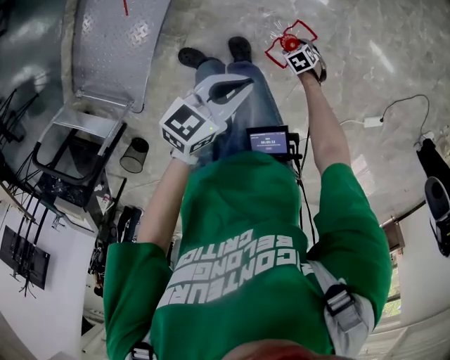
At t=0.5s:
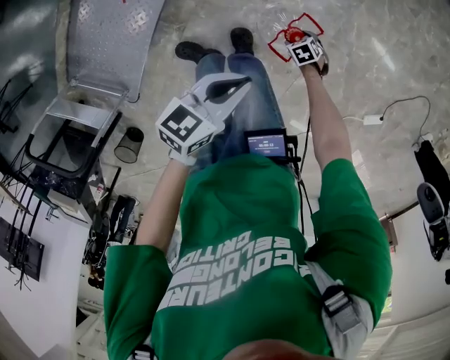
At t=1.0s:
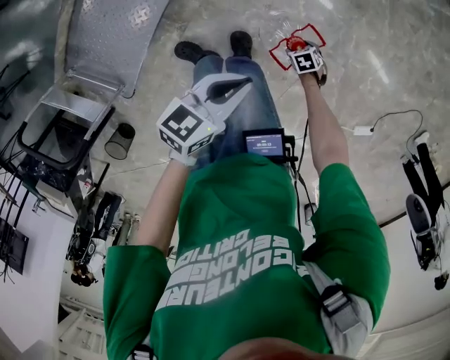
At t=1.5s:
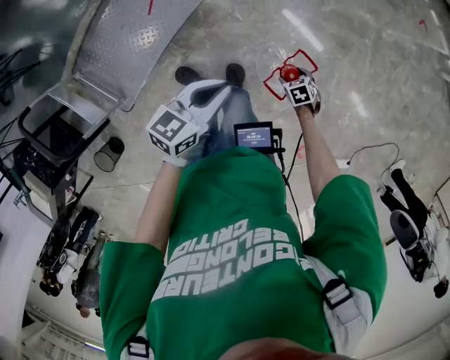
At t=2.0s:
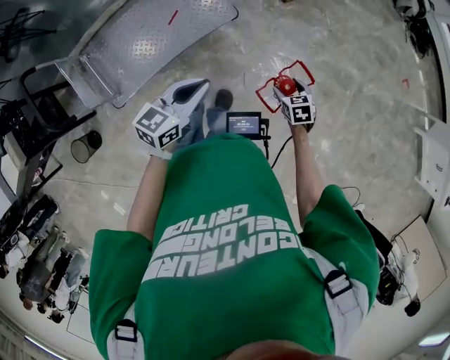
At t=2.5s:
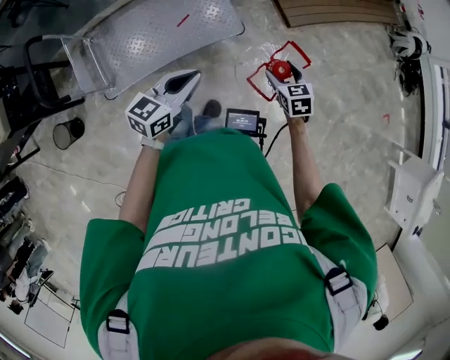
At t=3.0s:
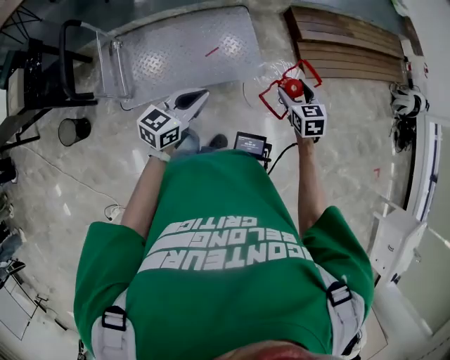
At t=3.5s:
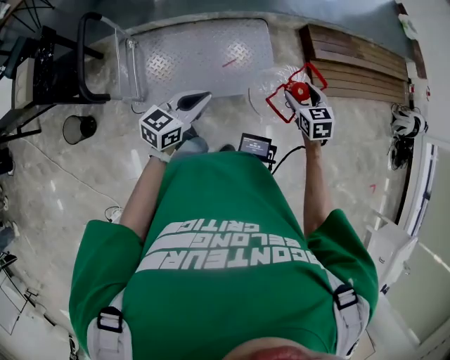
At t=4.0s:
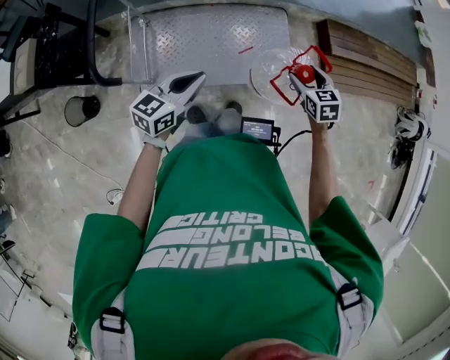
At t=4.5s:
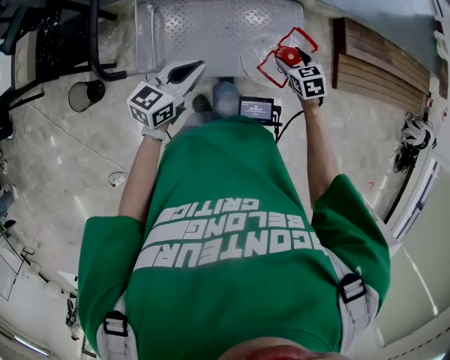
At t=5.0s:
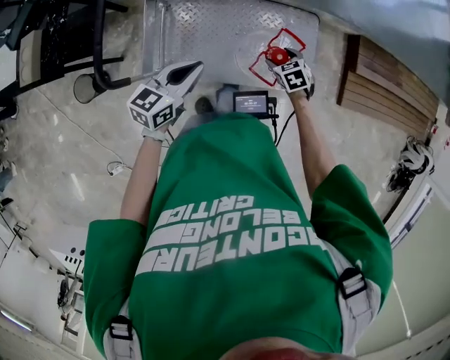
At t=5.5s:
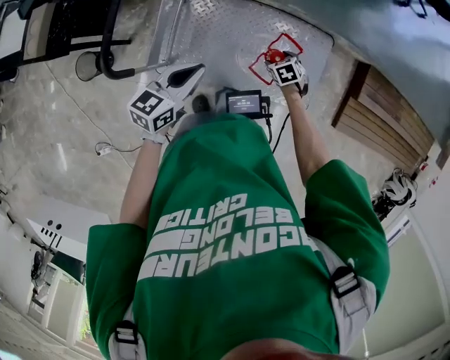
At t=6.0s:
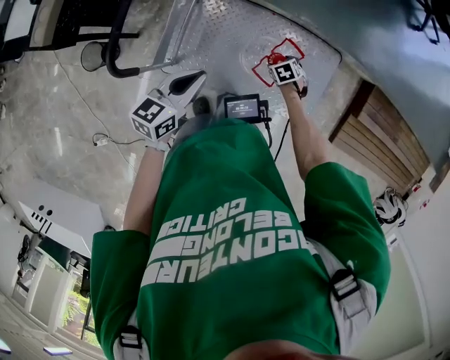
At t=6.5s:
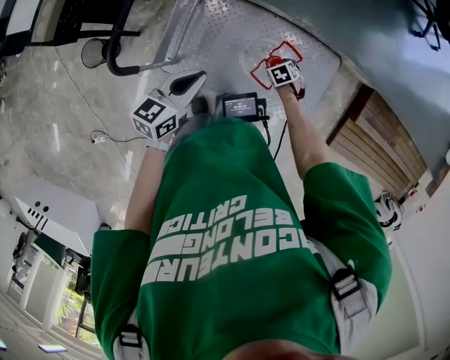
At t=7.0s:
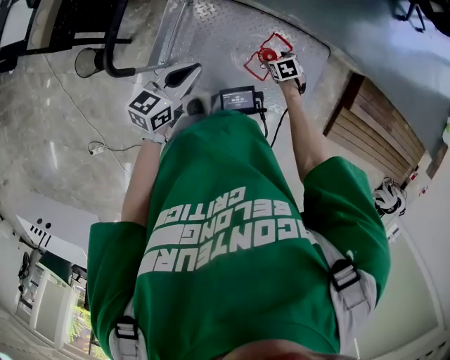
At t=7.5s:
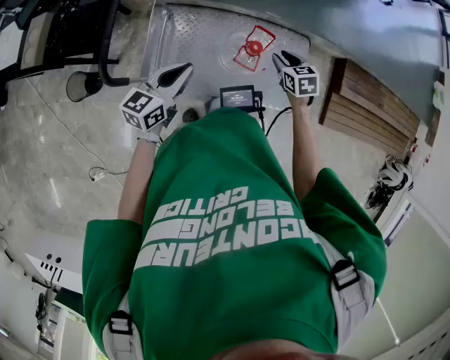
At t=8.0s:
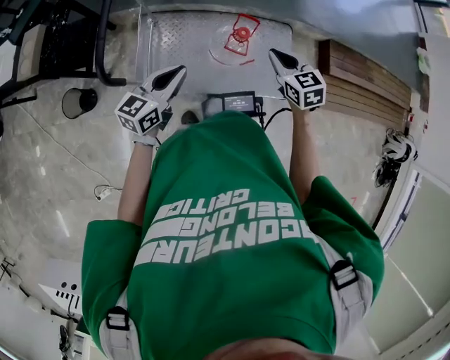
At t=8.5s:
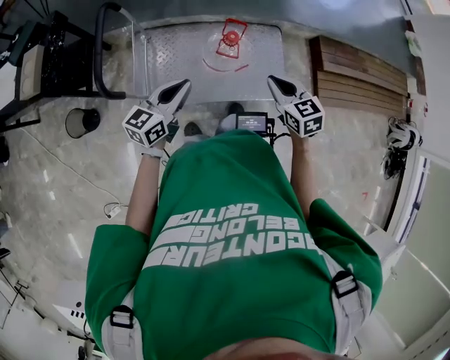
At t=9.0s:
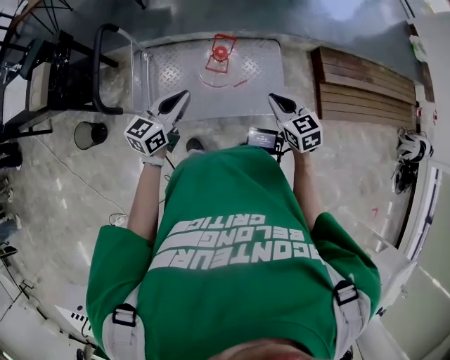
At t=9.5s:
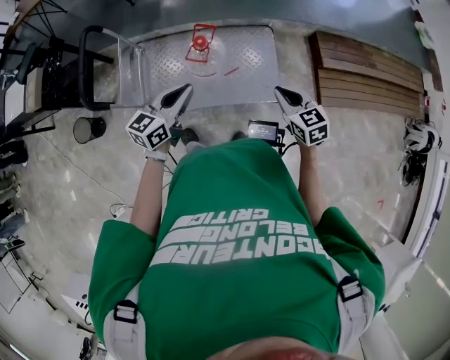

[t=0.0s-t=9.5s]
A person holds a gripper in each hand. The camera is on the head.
t=0.0s to t=2.0s: The right gripper travels upward by about 30 cm, and changes its angle by approximately 30 degrees. The left gripper moves upward, some 15 cm, and changes its angle by approximately 40 degrees.
t=2.0s to t=4.0s: The two grippers travel together, approximately 50 cm. The right gripper changes its angle by approximately 40 degrees. The left gripper turns by about 30 degrees.
t=4.0s to t=5.5s: The right gripper moves roughly 40 cm, and swivels approximately 40 degrees, while the left gripper ends up some 20 cm from where it was, and changes its angle by approximately 20 degrees.
t=5.5s to t=7.5s: The left gripper changes place by some 5 cm. The right gripper shifts roughly 20 cm upward, turns by approximately 20 degrees, and closes its fingers.
t=7.5s to t=9.5s: The right gripper shifts about 35 cm backward, to the right and upward, and closes; the left gripper goes about 25 cm to the right and backward.

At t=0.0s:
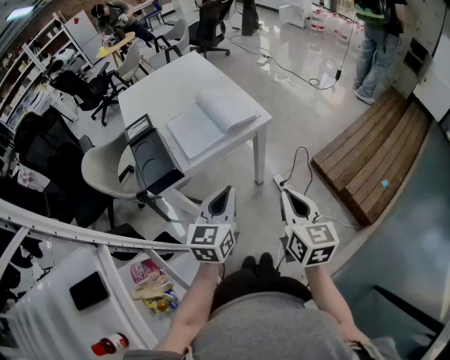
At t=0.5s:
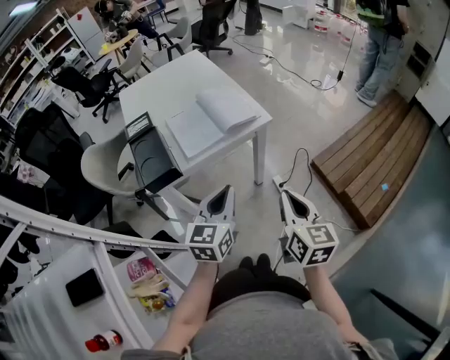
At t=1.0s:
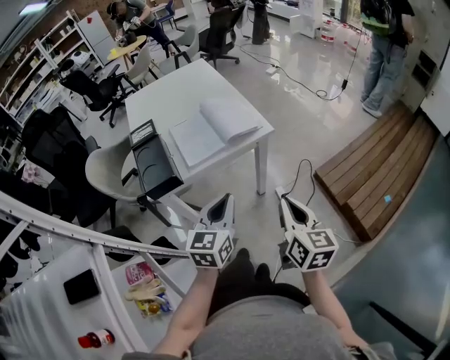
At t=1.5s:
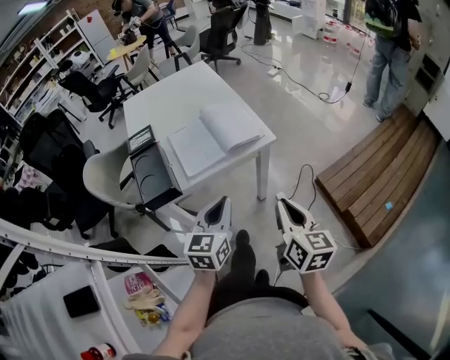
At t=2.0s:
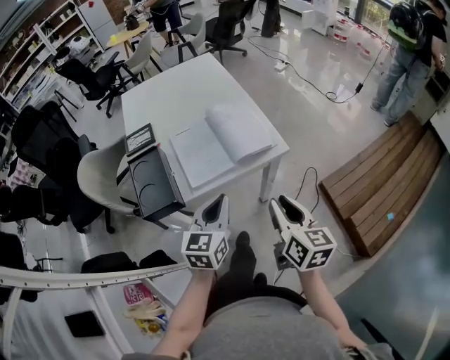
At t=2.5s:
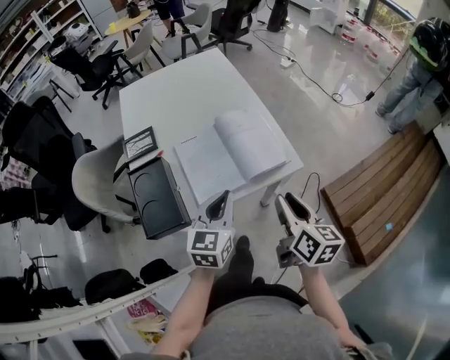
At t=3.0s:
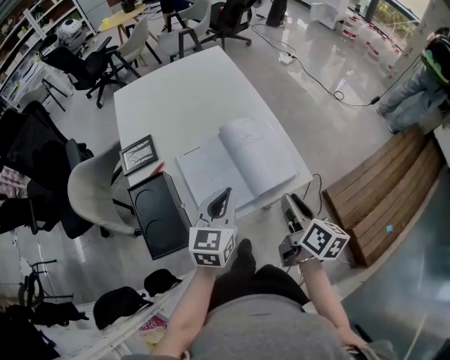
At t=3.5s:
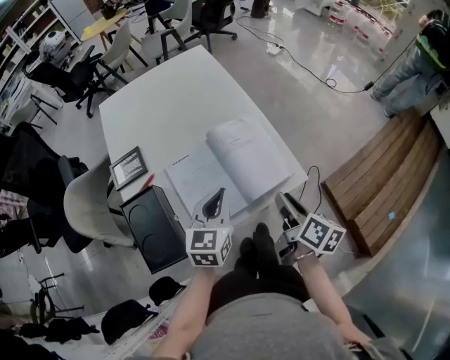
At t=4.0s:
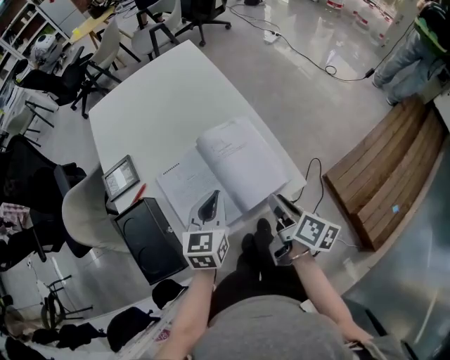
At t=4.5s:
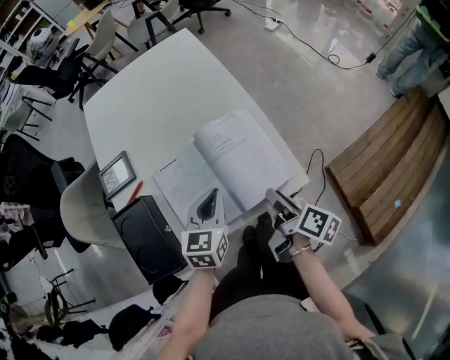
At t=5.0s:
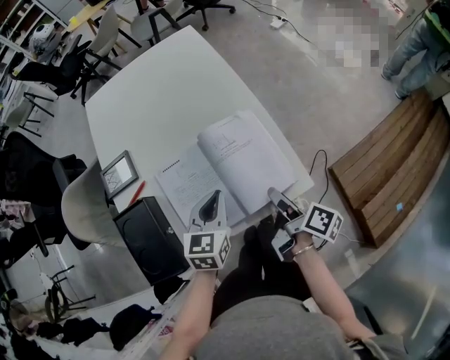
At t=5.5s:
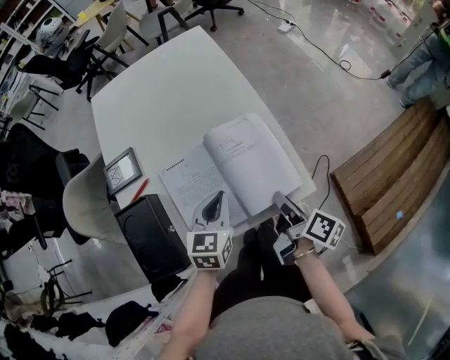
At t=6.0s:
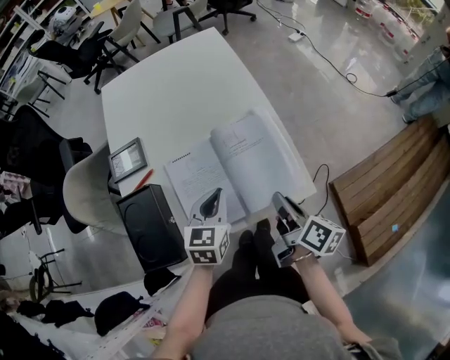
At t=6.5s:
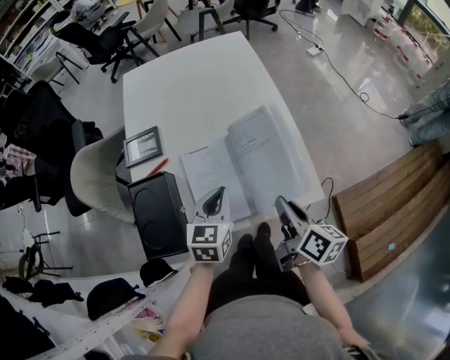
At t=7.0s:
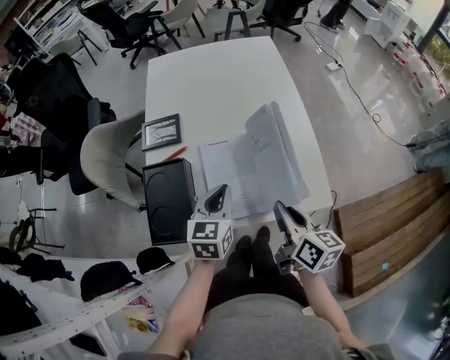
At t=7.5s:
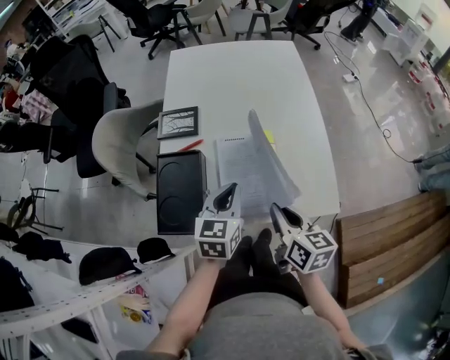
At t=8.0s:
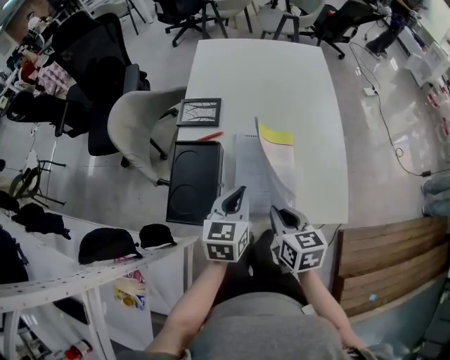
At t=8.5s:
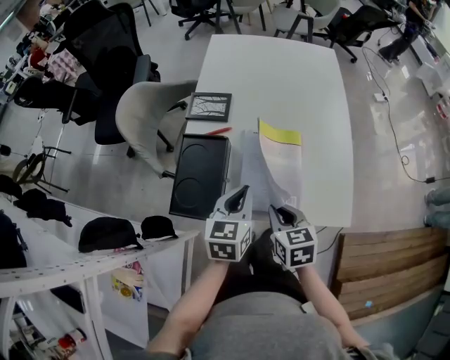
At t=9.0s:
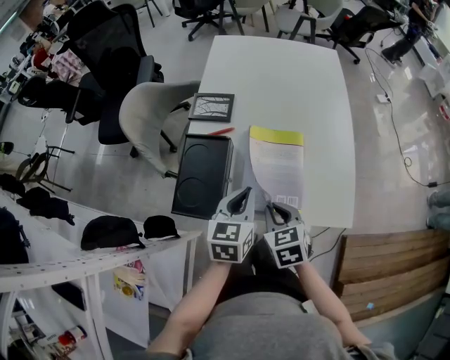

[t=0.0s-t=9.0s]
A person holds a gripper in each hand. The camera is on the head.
t=0.0s to t=2.0s: The two grippers go roughly 15 cm forward. The right gripper opens its fingers.
t=2.0s to t=4.5s: The left gripper heads forward, covering approximately 20 cm. The right gripper moves forward and downward, roughly 25 cm, and rotates around the line of its fingers by some 50 degrees, clockwise from behind.
t=4.5s to t=7.0s: The right gripper is displaced to the left and upward by about 10 cm, changes its angle by some 40 degrees, and closes its fingers; the left gripper travels to the left by about 10 cm.
t=7.0s to t=9.0s: The left gripper ends up about 5 cm from where it was; the right gripper travels to the left and downward by approximately 15 cm, and rolls counterclockwise, seen from behind, by approximately 50 degrees.

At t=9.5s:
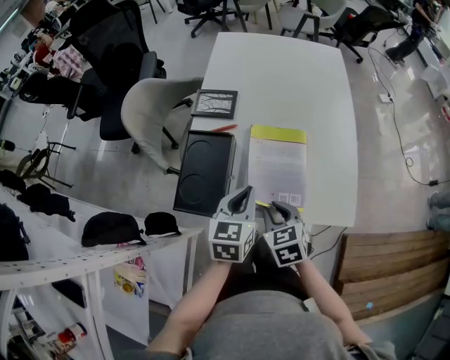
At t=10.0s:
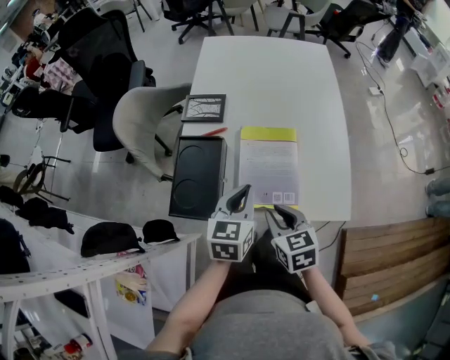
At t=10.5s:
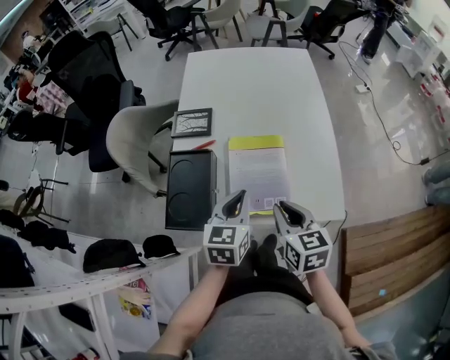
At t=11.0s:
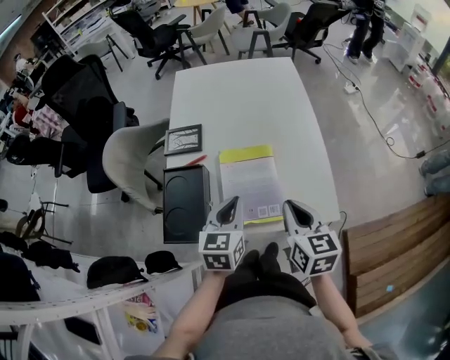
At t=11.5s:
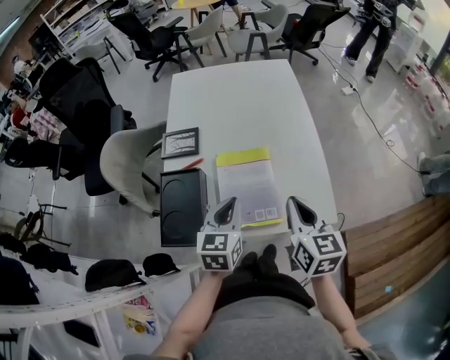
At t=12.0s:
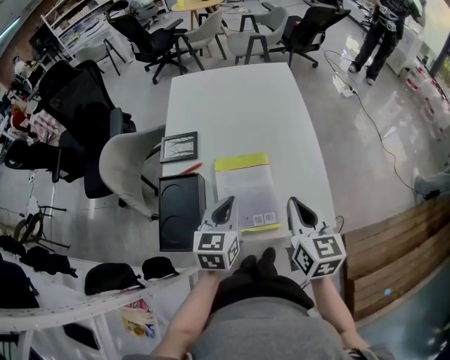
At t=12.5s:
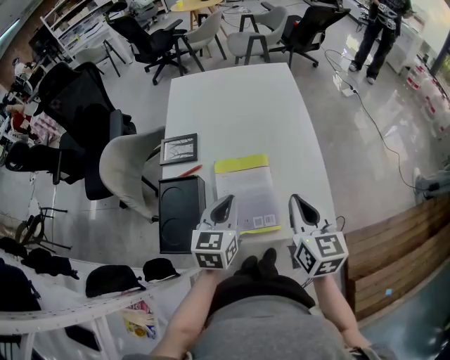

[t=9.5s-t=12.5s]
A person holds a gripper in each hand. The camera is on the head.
t=9.5s to t=11.0s: The right gripper shifts approximately 15 cm upward and to the right, and rotates roughly 40 degrees.
t=11.0s to t=12.5s: The right gripper ends up roughly 5 cm from where it was.

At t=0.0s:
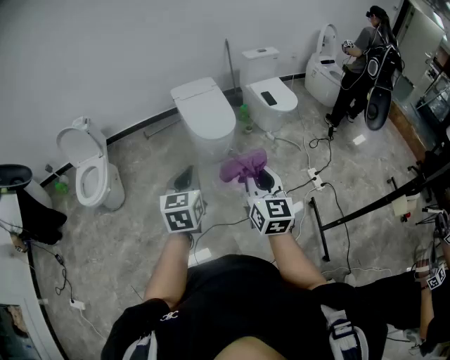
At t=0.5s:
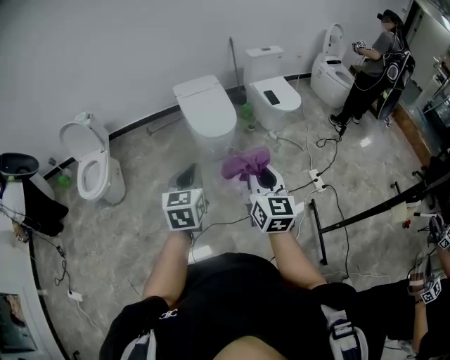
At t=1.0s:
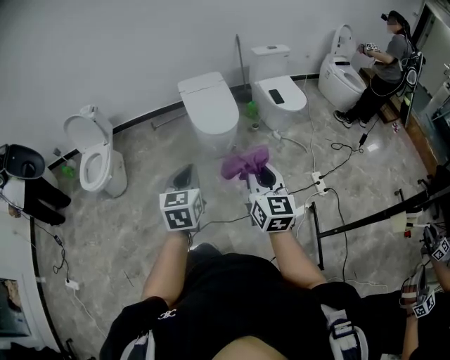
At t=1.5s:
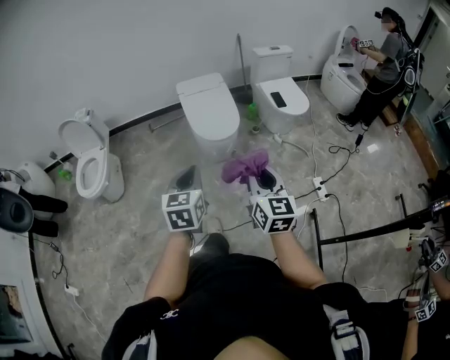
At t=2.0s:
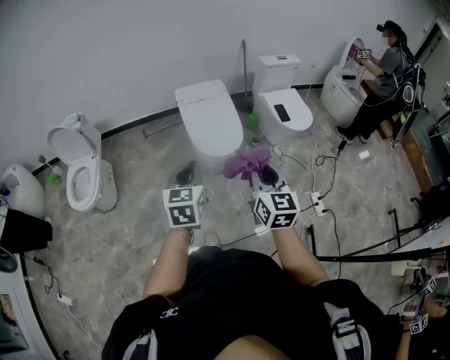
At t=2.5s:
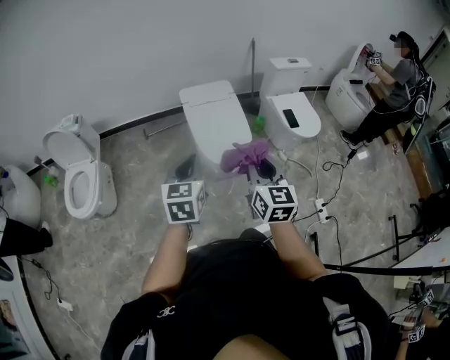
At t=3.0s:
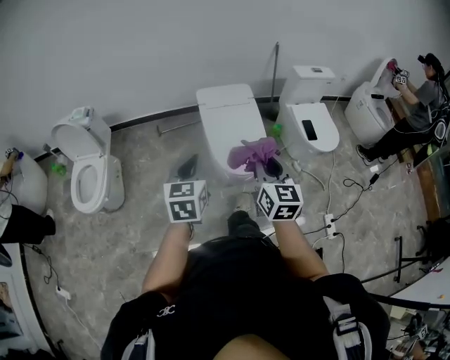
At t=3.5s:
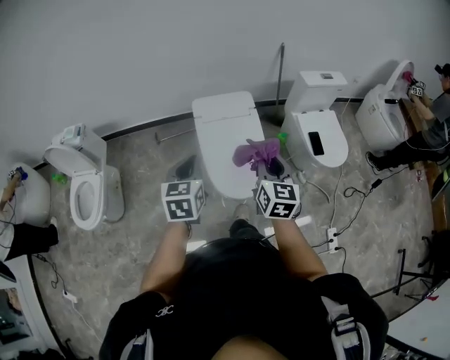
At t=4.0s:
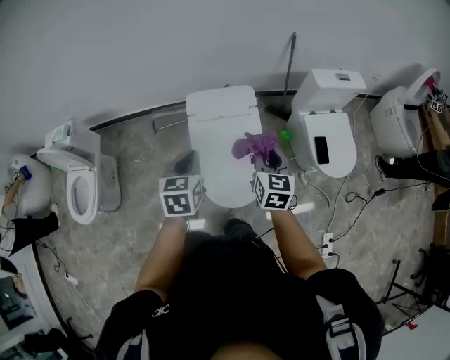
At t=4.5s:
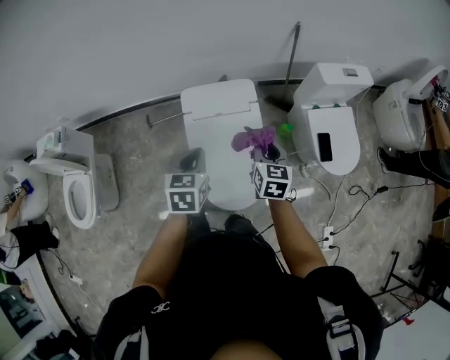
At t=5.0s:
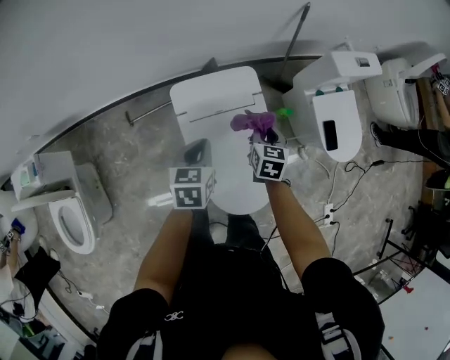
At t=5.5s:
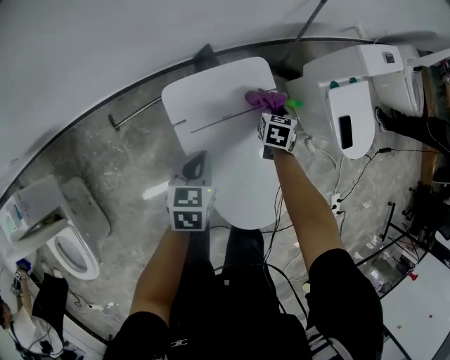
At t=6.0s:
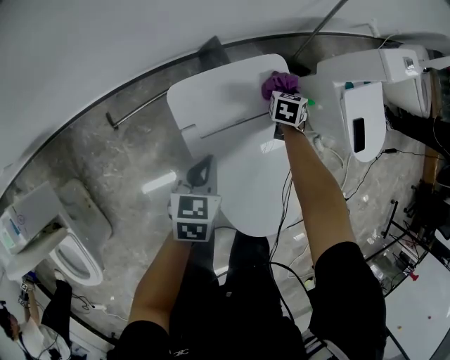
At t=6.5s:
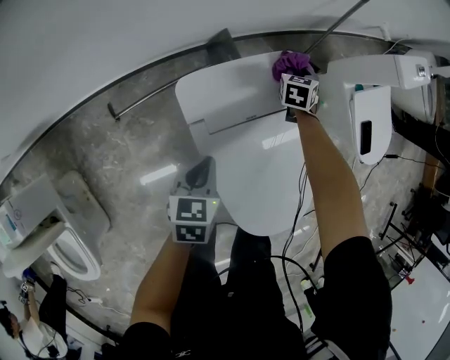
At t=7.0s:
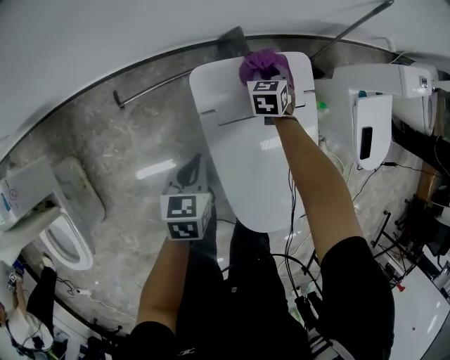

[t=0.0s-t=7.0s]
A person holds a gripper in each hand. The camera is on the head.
t=0.0s to t=2.0s: Both grippers travel together forward, approximately 25 cm.
t=2.0s to t=3.5s: The grippers both shift forward by some 40 cm.
t=3.5s to t=5.0s: The two grippers go roughly 40 cm forward and downward. The left gripper changes its angle by roughly 20 degrees. Meanwhile the right gripper rotates approximately 30 degrees.
t=5.0s to t=7.0s: The left gripper is displaced downward and to the left by about 25 cm. Meanwhile the right gripper goes about 35 cm downward, to the left and forward, and turns by about 30 degrees.
